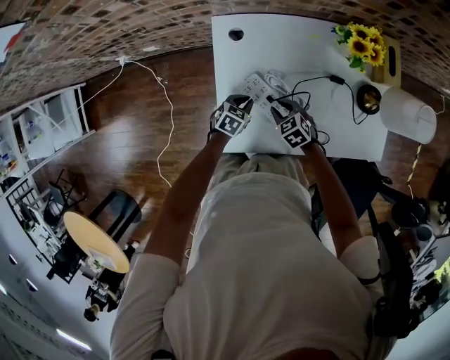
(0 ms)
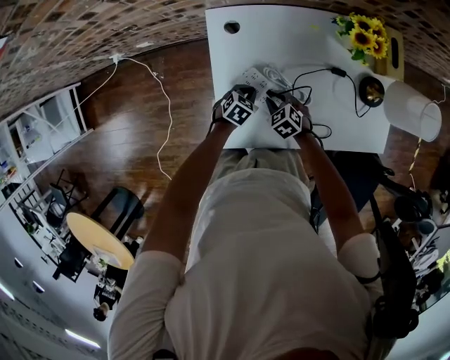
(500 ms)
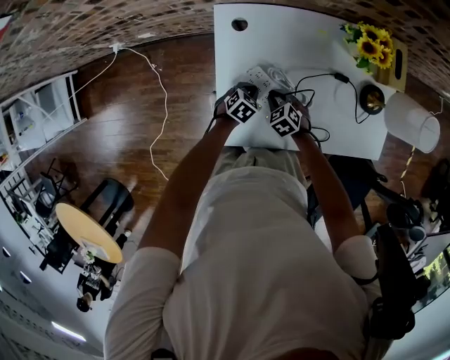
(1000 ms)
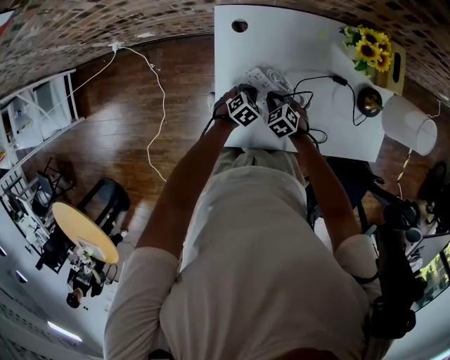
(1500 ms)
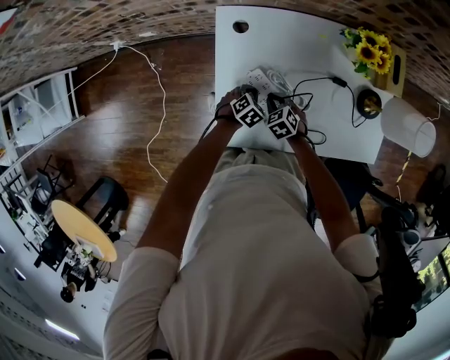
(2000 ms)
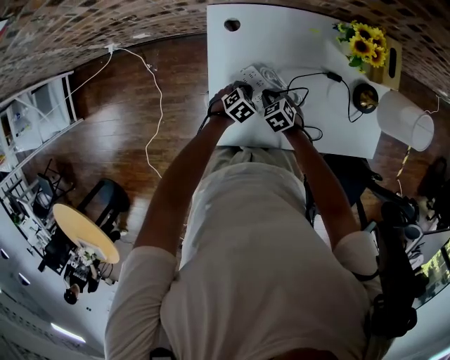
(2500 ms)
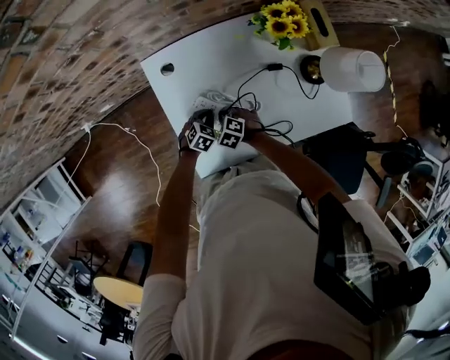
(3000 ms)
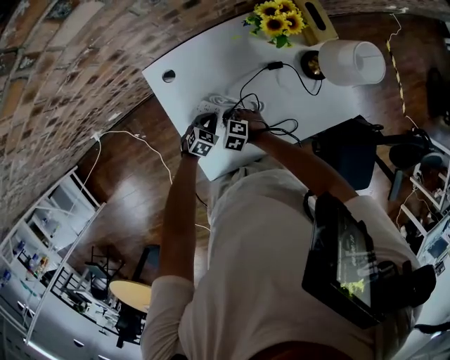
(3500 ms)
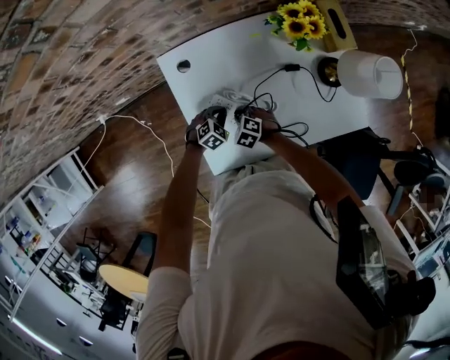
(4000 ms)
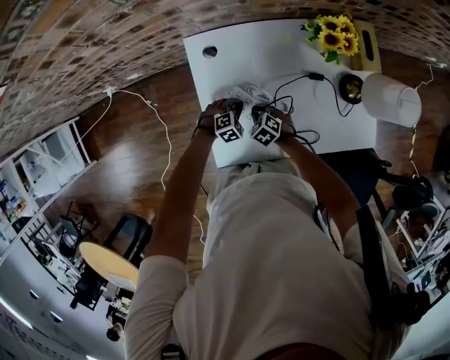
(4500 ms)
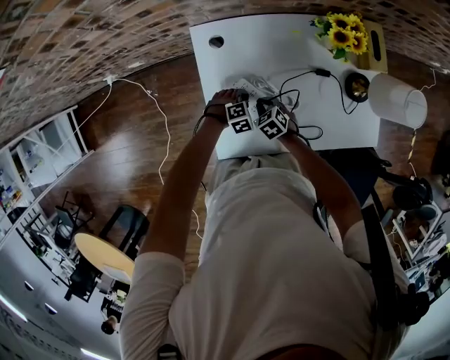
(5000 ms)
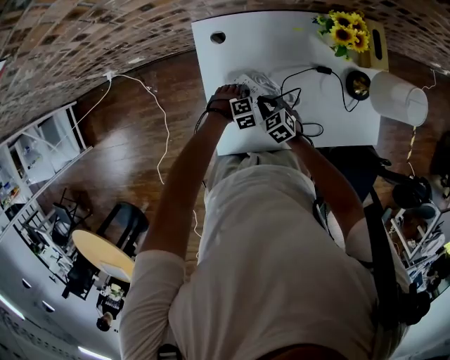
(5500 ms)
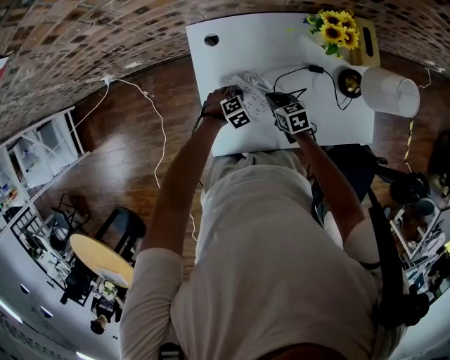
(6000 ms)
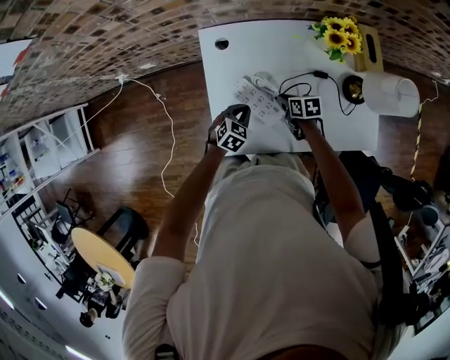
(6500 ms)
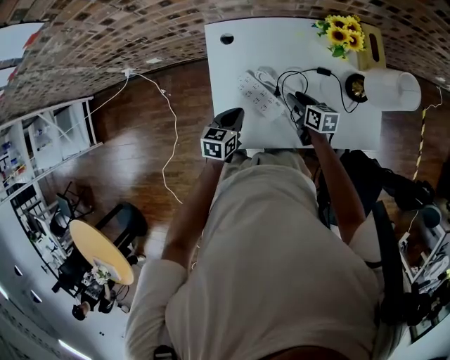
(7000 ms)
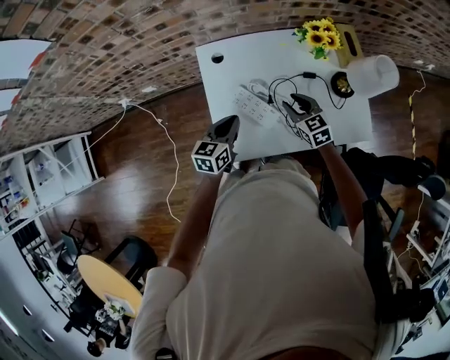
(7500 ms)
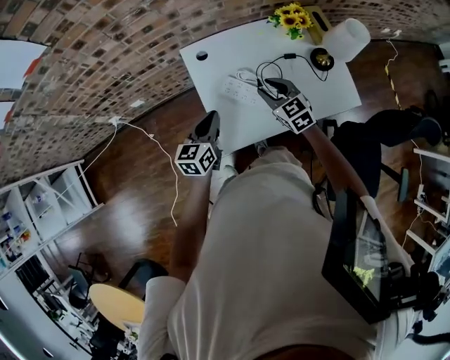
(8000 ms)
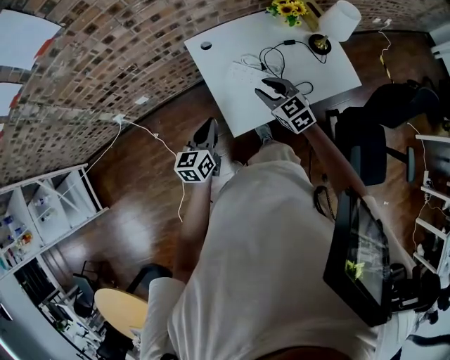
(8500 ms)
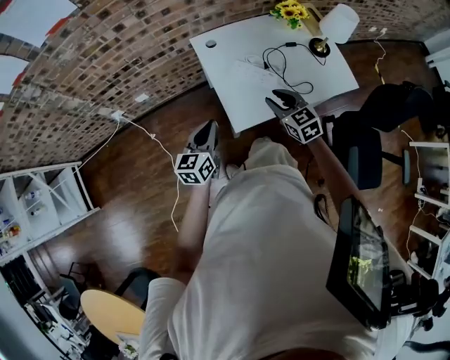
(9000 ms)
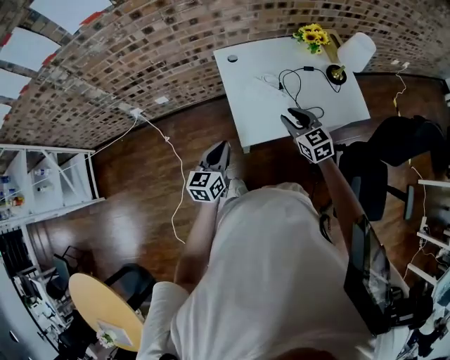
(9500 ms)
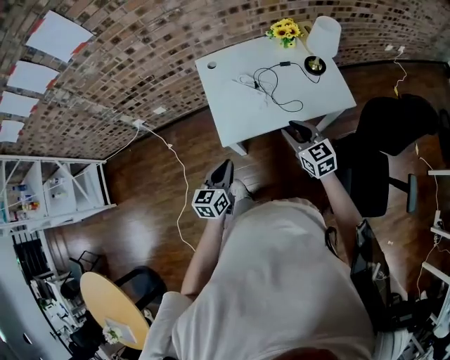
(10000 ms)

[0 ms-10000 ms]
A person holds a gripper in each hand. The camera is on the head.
0 ms to 2000 ms: The left gripper rotates roughly 20 degrees.
2000 ms to 4000 ms: The left gripper rotates about 20 degrees.
4000 ms to 6000 ms: The right gripper changes place by approximately 10 cm, and swivels approximately 40 degrees.
6000 ms to 8000 ms: The grippers both shift upward by approximately 25 cm. The left gripper points its fingers roughly 50 degrees further upward. Meanwhile the right gripper rotates roughly 30 degrees.
8000 ms to 10000 ms: The grippers both shift backward by roughly 25 cm.

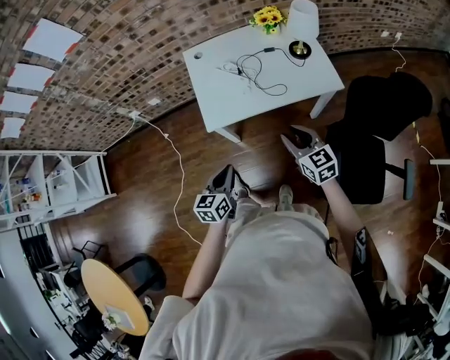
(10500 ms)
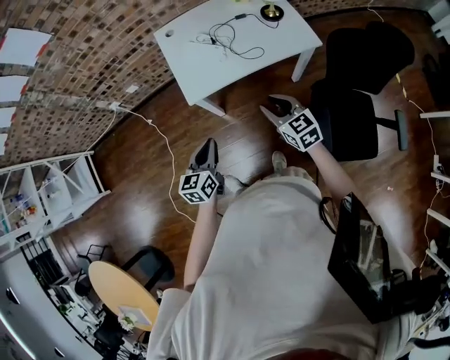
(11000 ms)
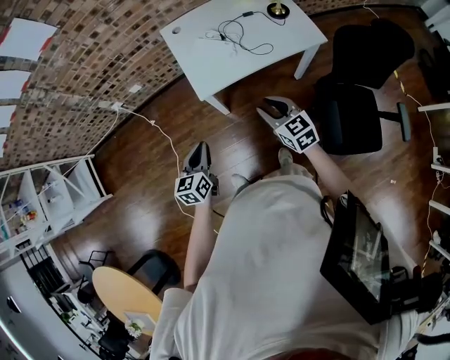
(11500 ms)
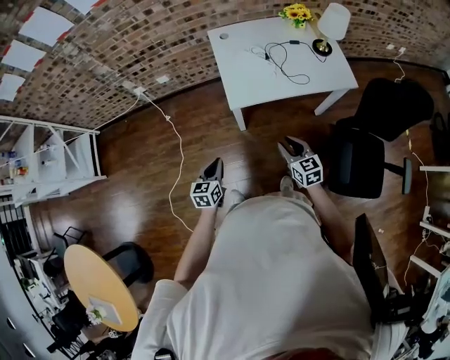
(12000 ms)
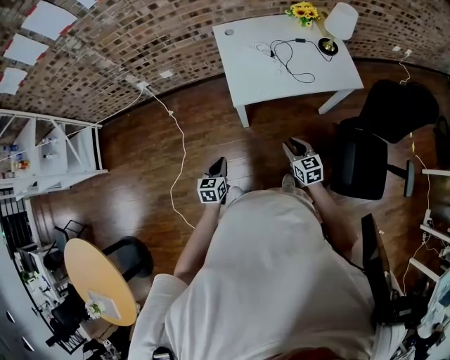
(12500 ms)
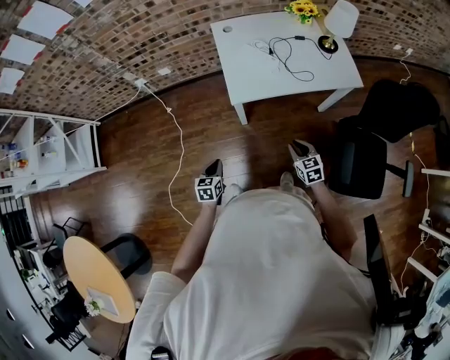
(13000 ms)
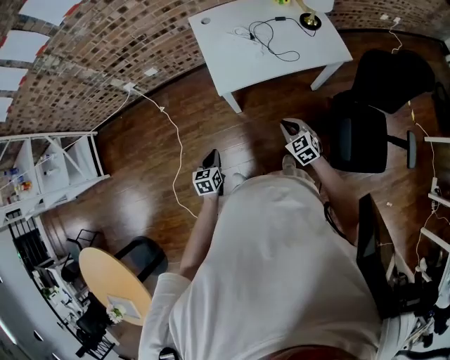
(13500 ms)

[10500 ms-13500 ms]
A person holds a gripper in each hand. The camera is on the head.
10500 ms to 12000 ms: The right gripper goes approximately 20 cm to the left, downward and backward. Meanwhile the left gripper shifts about 20 cm to the left and downward.
12000 ms to 13500 ms: Both grippers move downward, about 5 cm. The right gripper changes its angle by approximately 20 degrees, and closes up.

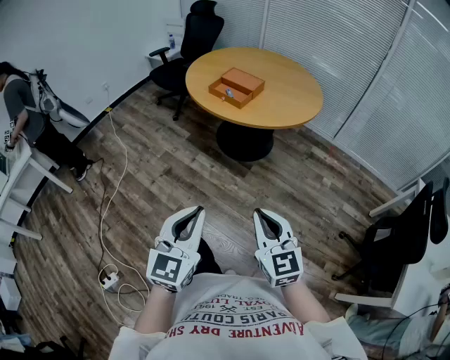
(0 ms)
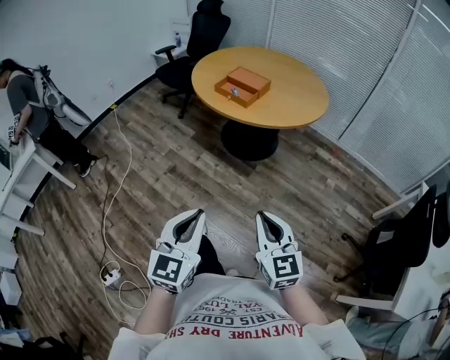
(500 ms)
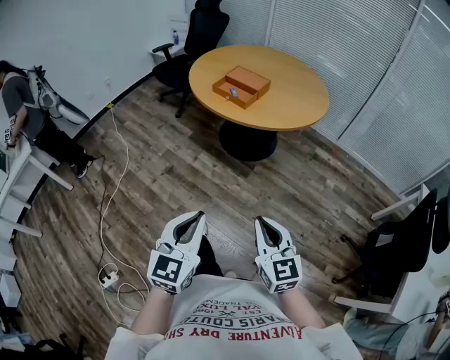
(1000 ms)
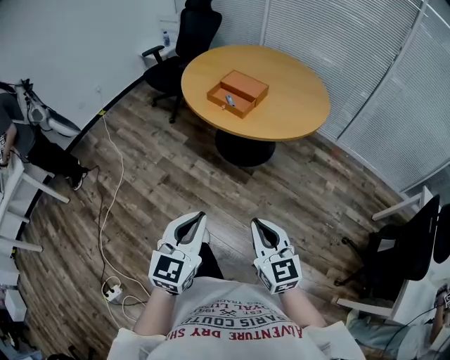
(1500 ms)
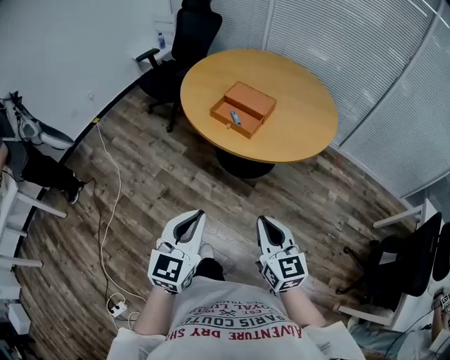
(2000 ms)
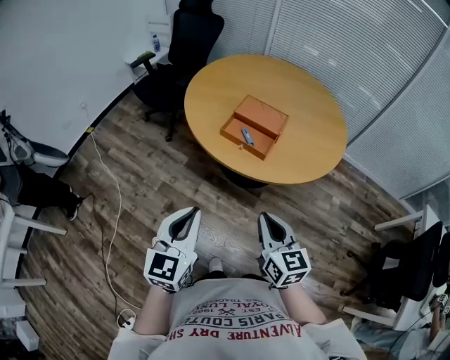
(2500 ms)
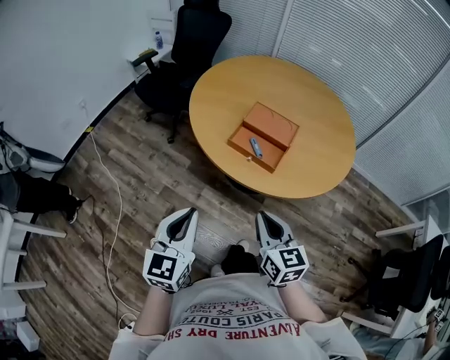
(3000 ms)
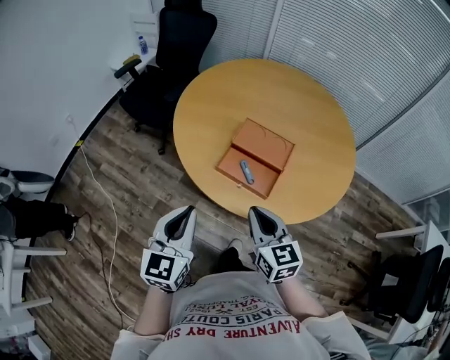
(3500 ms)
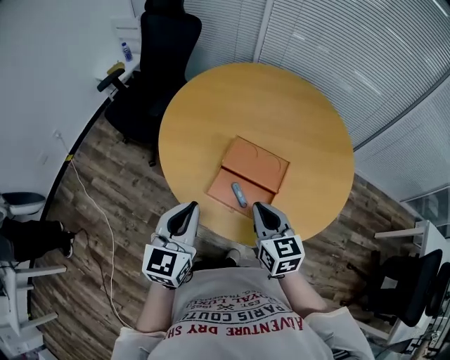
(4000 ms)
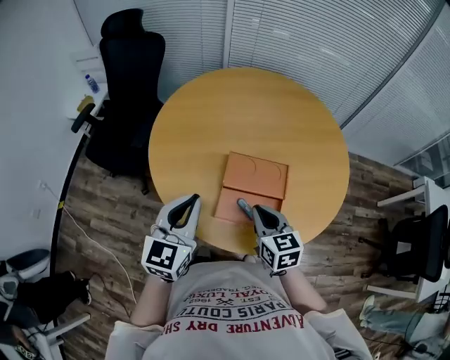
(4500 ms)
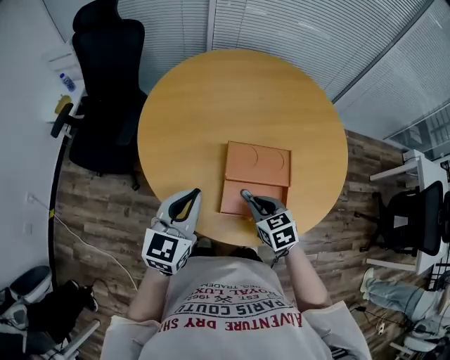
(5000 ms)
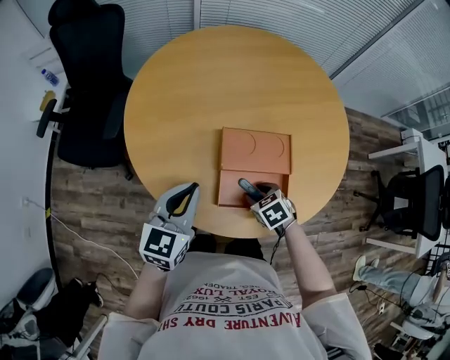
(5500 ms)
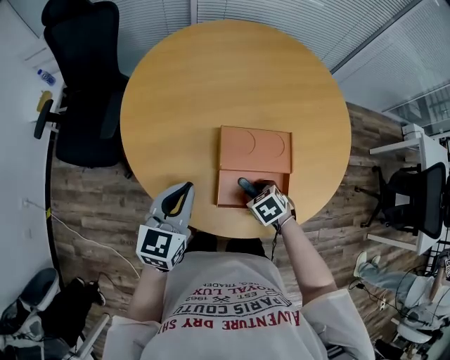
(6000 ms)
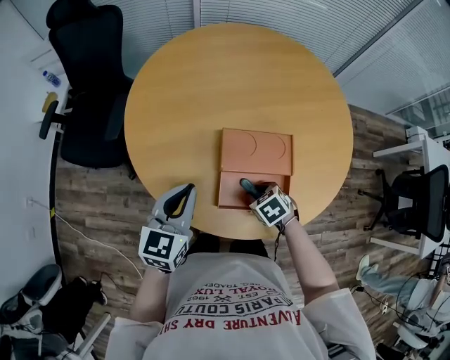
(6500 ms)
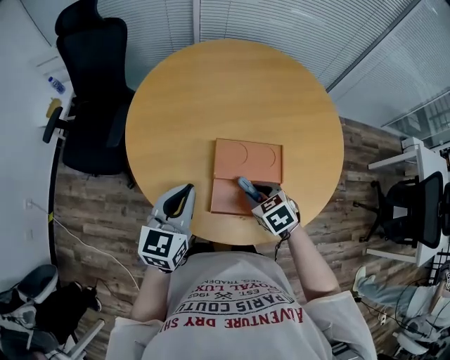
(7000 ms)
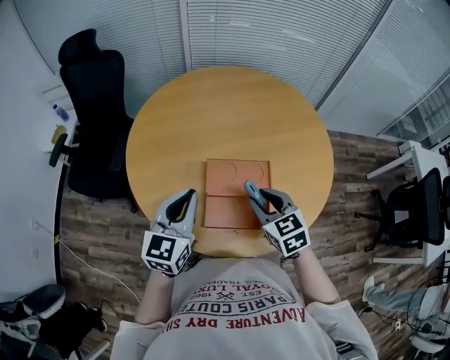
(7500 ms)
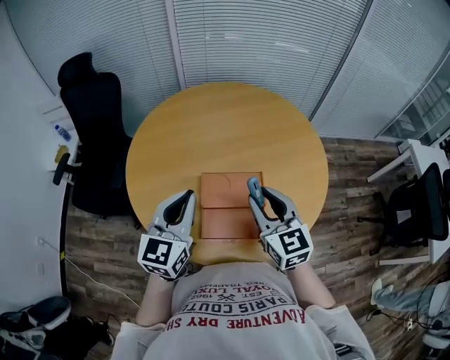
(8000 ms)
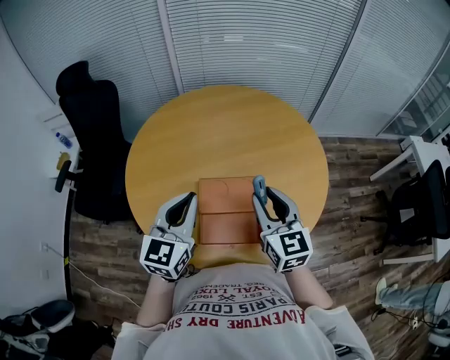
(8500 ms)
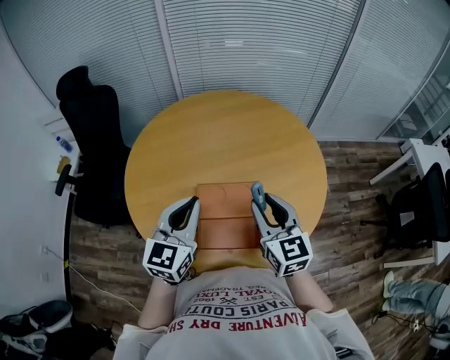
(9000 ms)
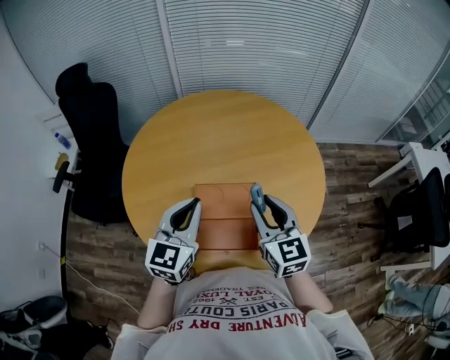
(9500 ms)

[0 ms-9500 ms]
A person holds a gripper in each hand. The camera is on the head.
0 ms to 2000 ms: The grippers both shift forward by roughly 25 cm.
2000 ms to 4000 ms: Both grippers are carried forward, approximately 50 cm.
4000 ms to 5500 ms: The left gripper moves forward and downward, approximately 15 cm, and changes its angle by roughly 30 degrees. The right gripper travels downward by about 20 cm, angles its fingers downward, by approximately 40 degrees, and opens.
5500 ms to 7500 ms: The left gripper heads upward and to the right, covering some 10 cm. Meanwhile the right gripper is displaced upward by roughly 20 cm, and points its fingers some 30 degrees further upward.
7500 ms to 9500 ms: The right gripper moves upward and to the right, roughly 10 cm, and turns by some 30 degrees. The left gripper moves to the right, some 10 cm.

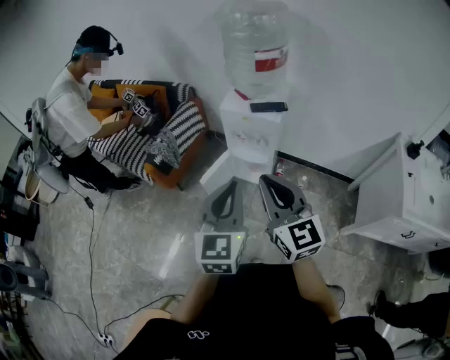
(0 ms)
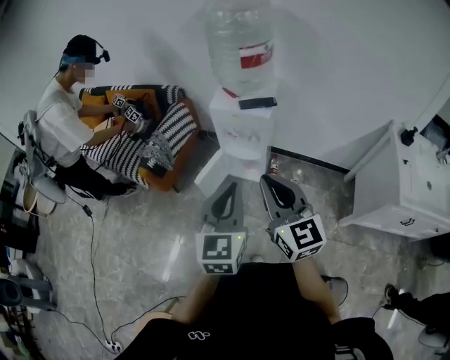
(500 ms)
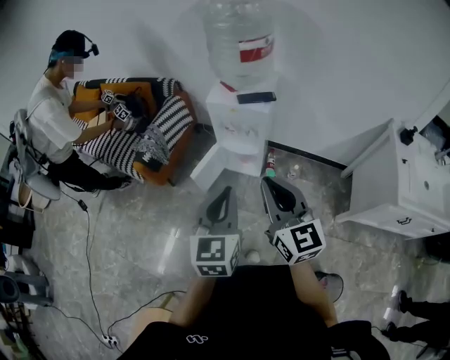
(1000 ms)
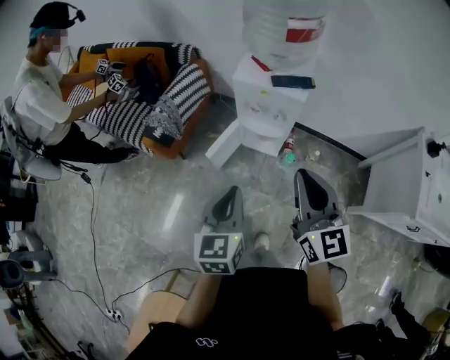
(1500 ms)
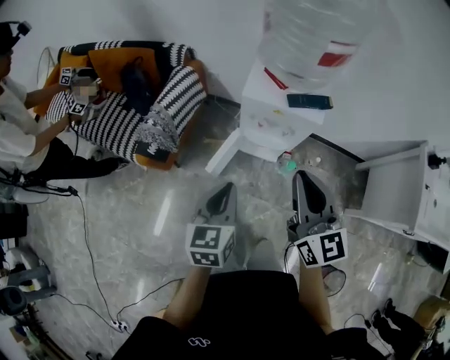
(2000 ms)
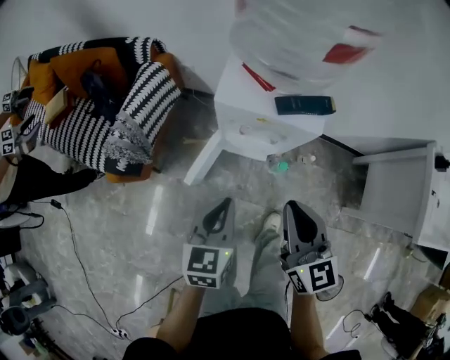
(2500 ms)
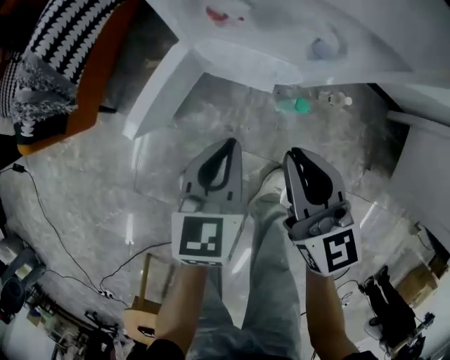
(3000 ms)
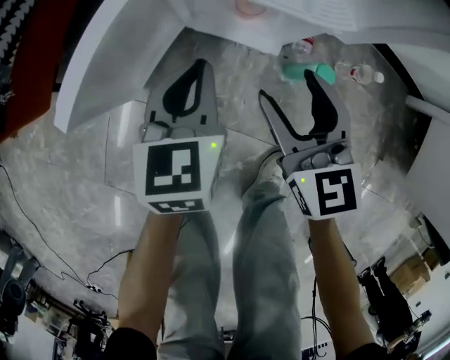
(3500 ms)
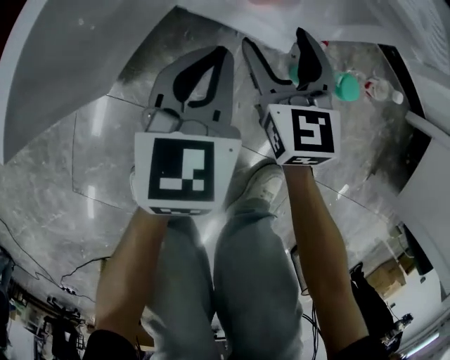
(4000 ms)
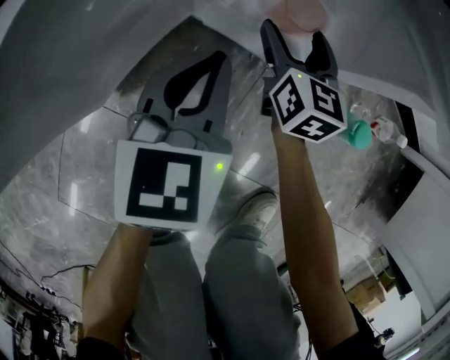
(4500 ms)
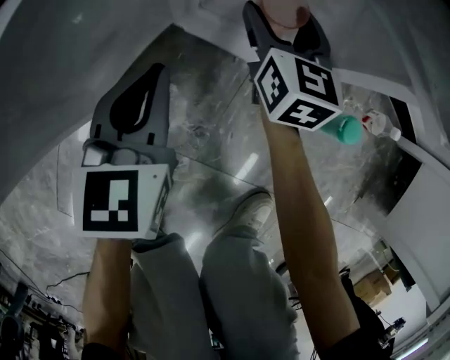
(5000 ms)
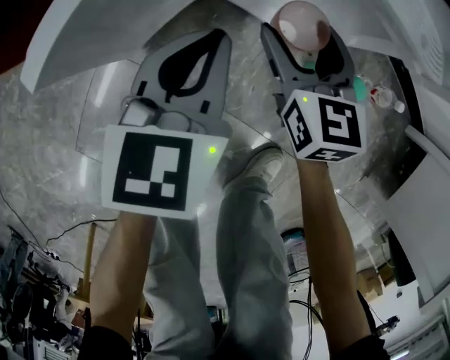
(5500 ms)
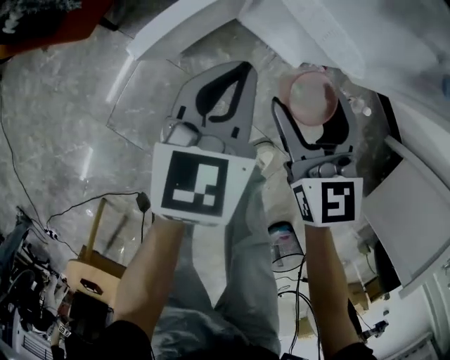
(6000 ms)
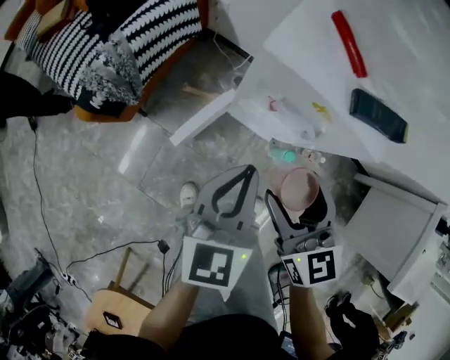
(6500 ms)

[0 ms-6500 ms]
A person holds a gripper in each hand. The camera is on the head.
0 ms to 2000 ms: The left gripper goes some 30 cm forward, downward and to the left, and swivels roughly 30 degrees. The right gripper moves forward, roughly 20 cm.
2000 ms to 4500 ms: The grippers both shift downward by approximately 80 cm. The right gripper rotates some 20 degrees, and opens.
4500 ms to 6500 ms: Both grippers move upward, roughly 60 cm.
